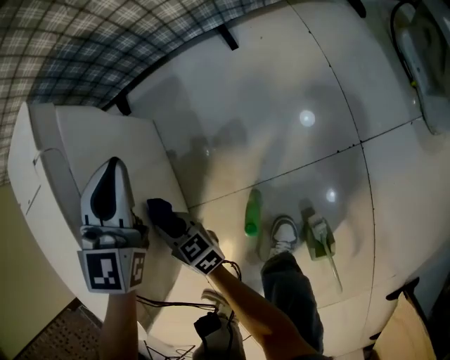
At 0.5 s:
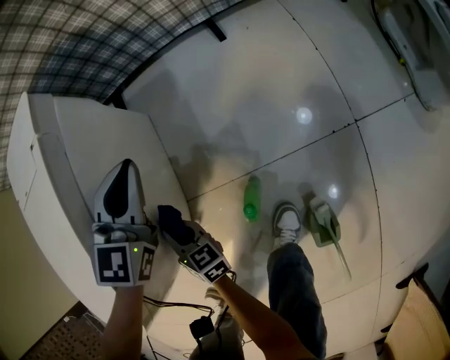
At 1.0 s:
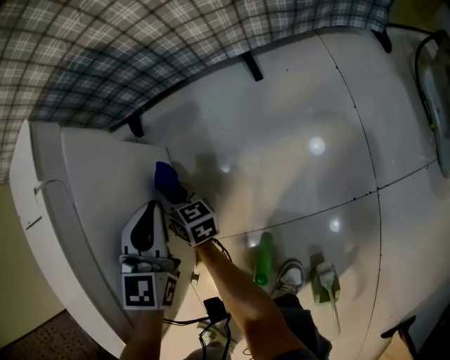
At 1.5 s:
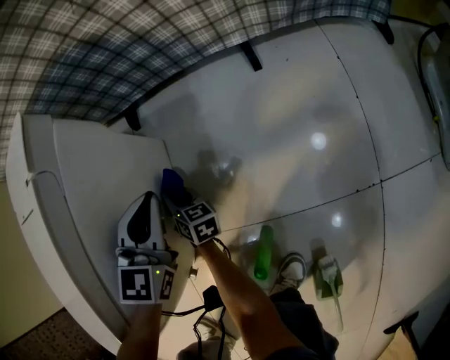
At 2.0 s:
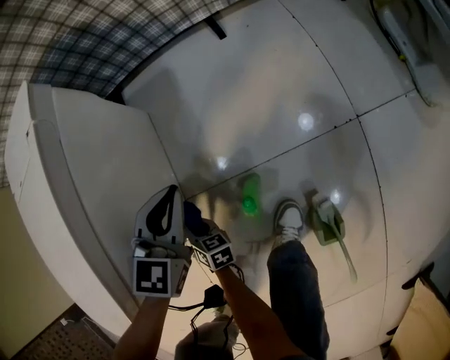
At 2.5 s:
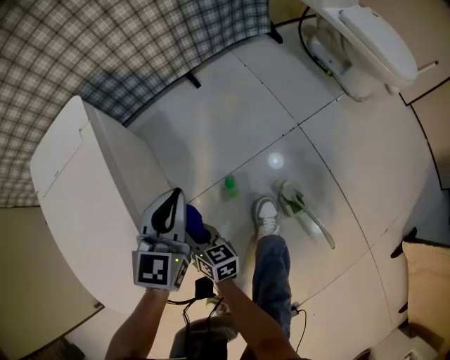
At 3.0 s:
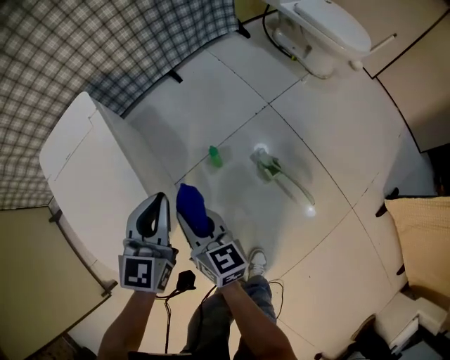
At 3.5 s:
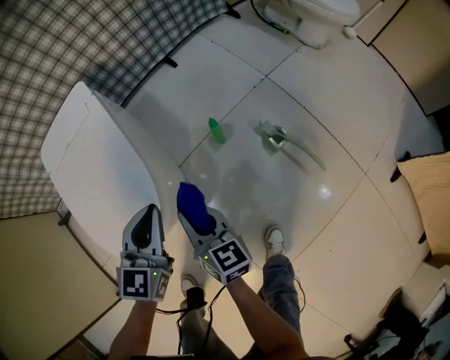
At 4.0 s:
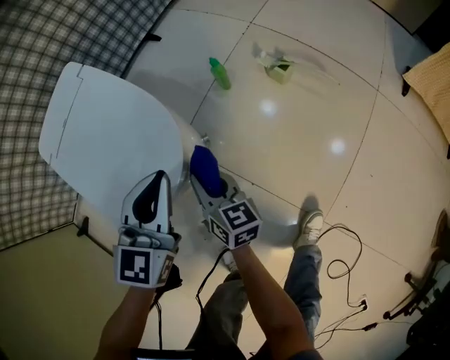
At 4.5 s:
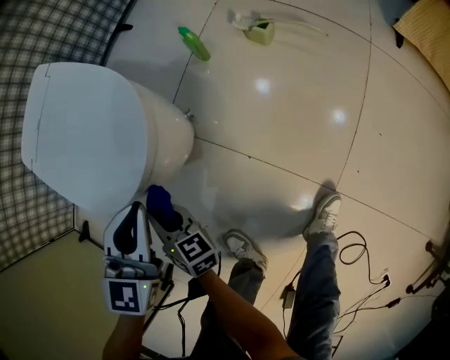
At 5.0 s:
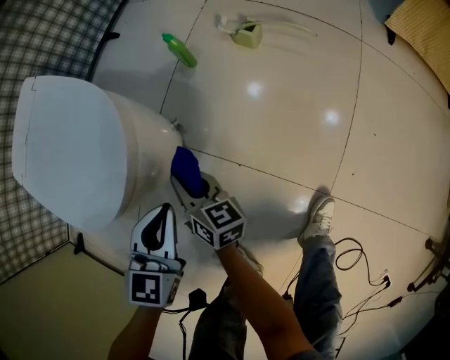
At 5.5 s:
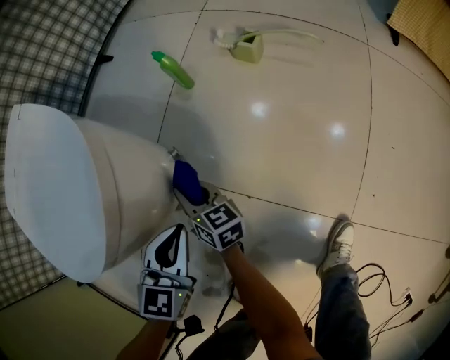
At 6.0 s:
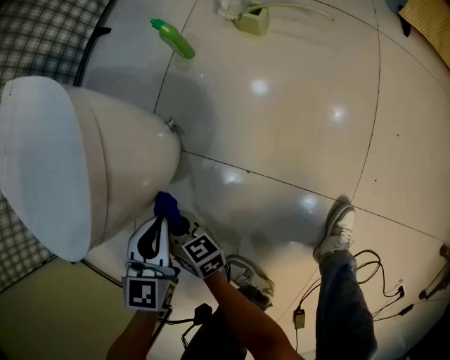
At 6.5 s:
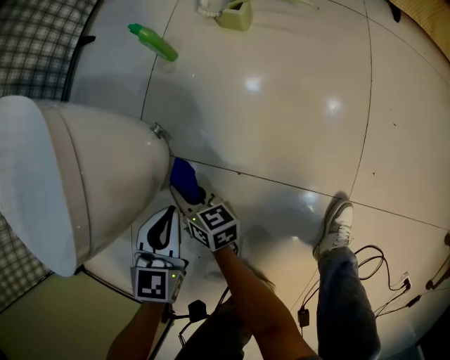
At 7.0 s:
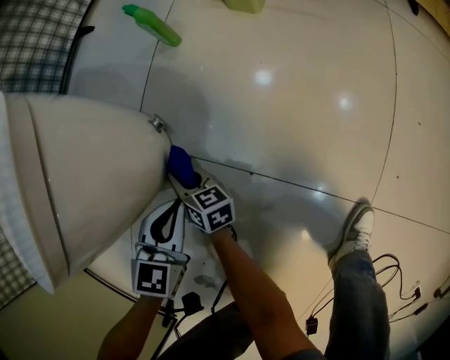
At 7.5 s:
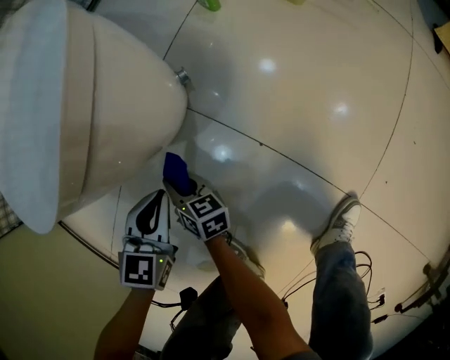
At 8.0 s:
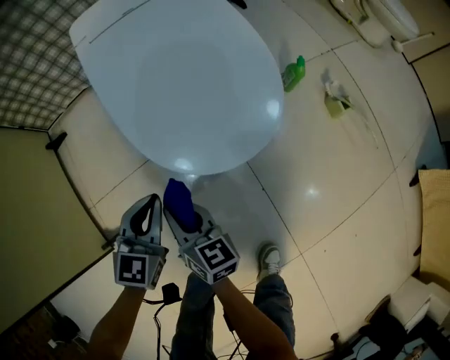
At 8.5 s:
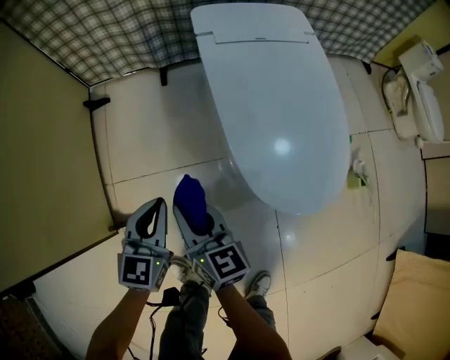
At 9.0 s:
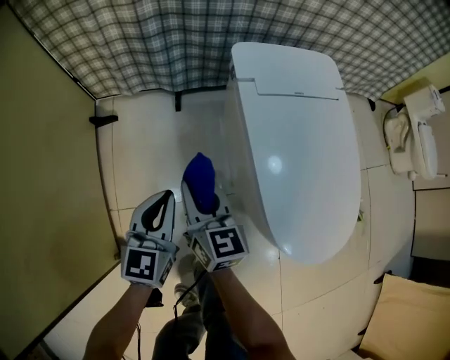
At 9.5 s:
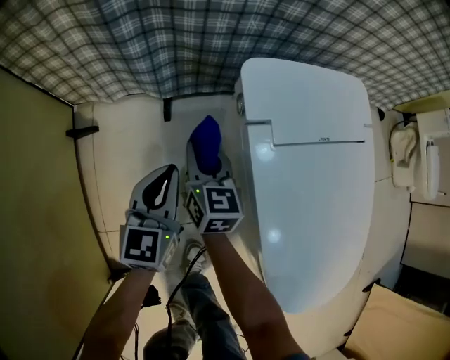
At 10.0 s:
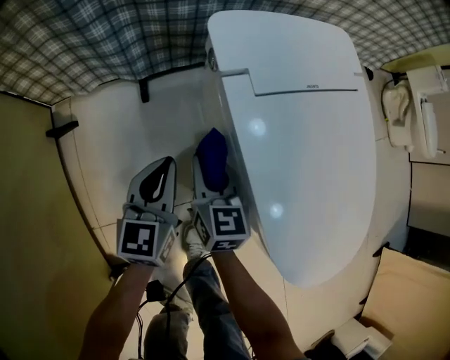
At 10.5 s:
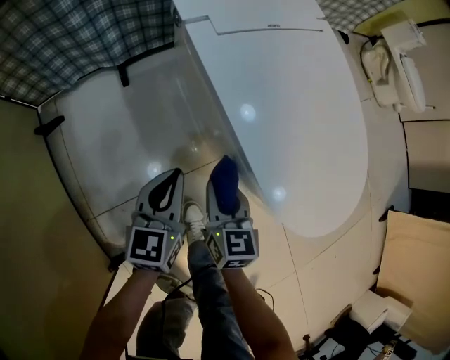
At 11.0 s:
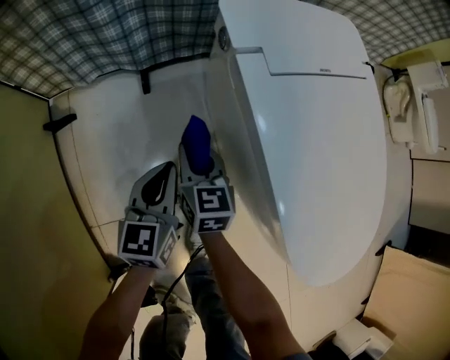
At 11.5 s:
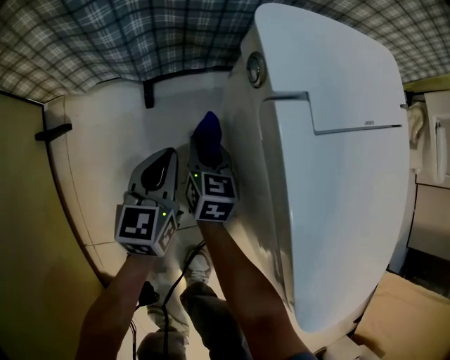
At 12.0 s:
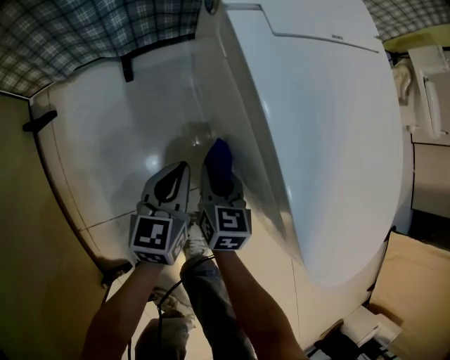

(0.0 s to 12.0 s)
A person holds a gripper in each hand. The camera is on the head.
0.0 s - 2.0 s: The left gripper moves forward and backward over roughly 15 cm, changing direction 2 times. The right gripper goes forward and backward, roughly 30 cm each way, reversing 2 times, and changes its angle by about 20 degrees.
2.0 s - 4.0 s: The right gripper moves upward, approximately 30 cm, and turns by approximately 60 degrees; the left gripper ends up roughly 50 cm from where it was, and swivels some 40 degrees.
4.0 s - 6.0 s: The left gripper goes approximately 30 cm downward. The right gripper goes approximately 25 cm downward, to the left and backward.
6.0 s - 8.0 s: The grippers both shift upward by about 20 cm. The right gripper swivels some 30 degrees. The left gripper rotates roughly 30 degrees.
8.0 s - 10.0 s: The pair of grippers is taken forward and to the left, roughly 40 cm. The left gripper rotates about 20 degrees, while the right gripper rotates roughly 20 degrees.
10.0 s - 12.0 s: The left gripper goes forward and backward, roughly 20 cm each way, reversing 2 times. The right gripper moves forward and backward over about 25 cm, changing direction 2 times.

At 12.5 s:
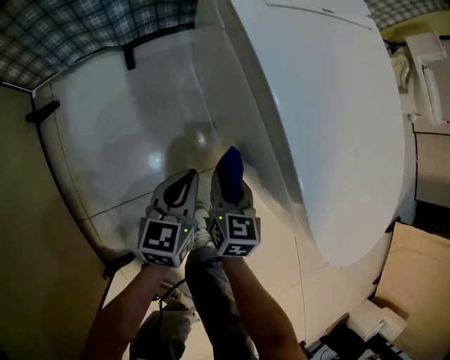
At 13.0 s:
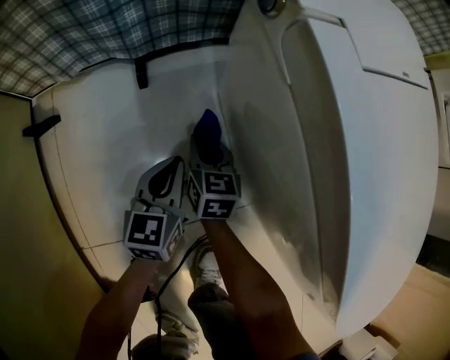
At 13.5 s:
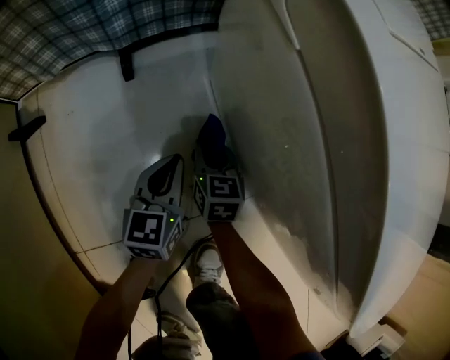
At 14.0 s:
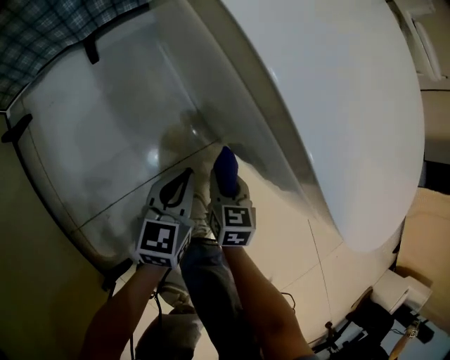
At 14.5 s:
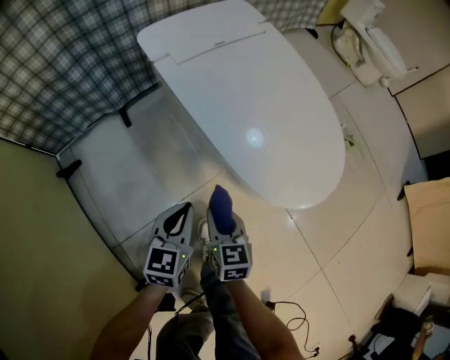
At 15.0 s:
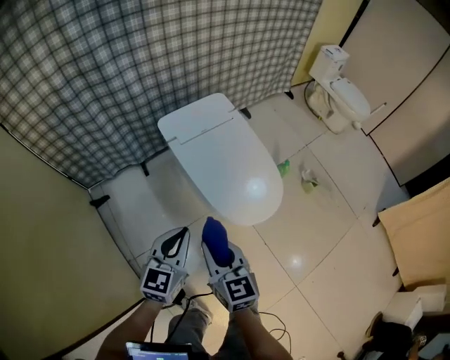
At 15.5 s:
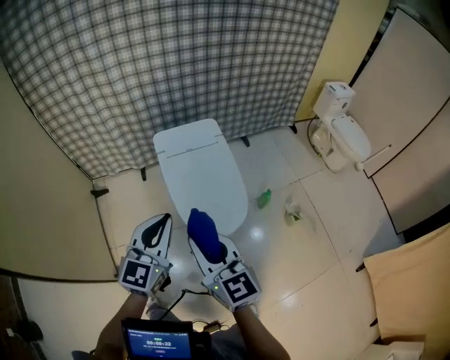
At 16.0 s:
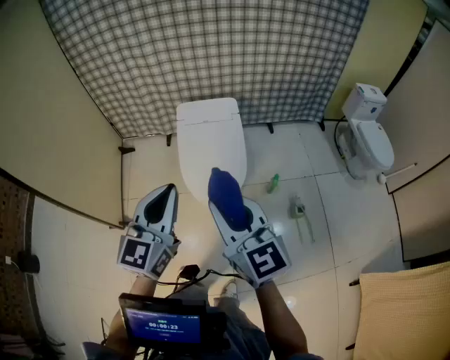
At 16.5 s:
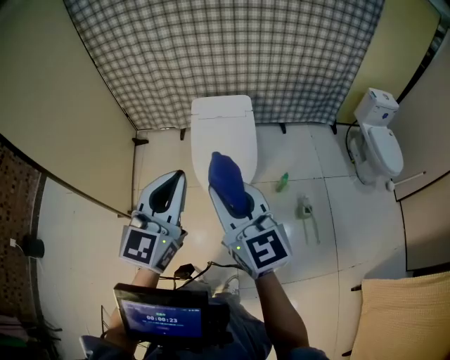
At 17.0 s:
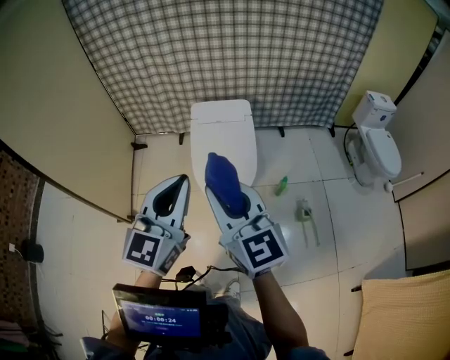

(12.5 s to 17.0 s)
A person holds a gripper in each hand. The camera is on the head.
12.5 s - 14.5 s: The two grippers go about 15 cm upward and backward. The left gripper rotates roughly 20 degrees.
14.5 s - 17.0 s: The two grippers go about 70 cm upward. The right gripper points its fingers some 30 degrees further upward. The left gripper rotates some 40 degrees.

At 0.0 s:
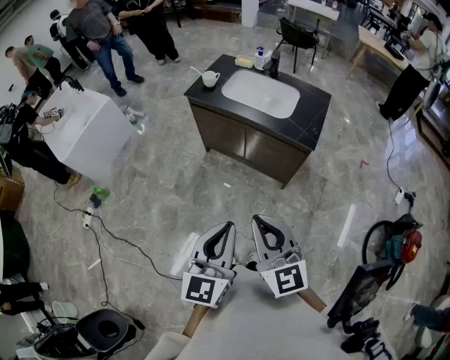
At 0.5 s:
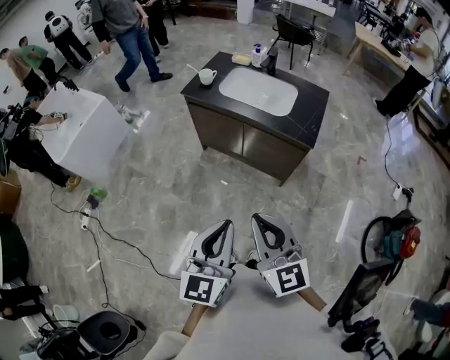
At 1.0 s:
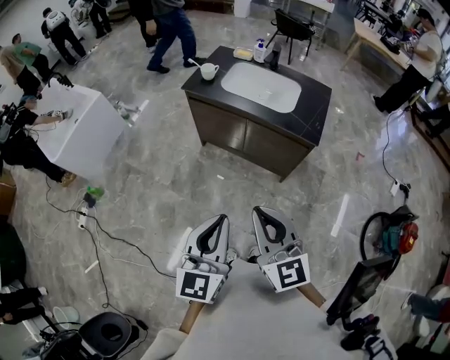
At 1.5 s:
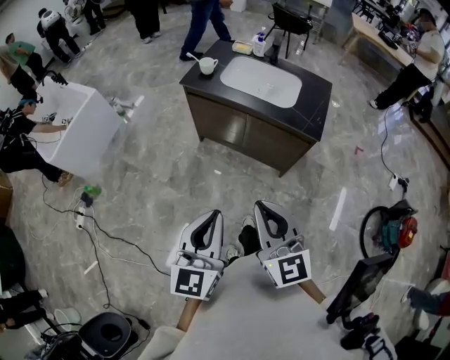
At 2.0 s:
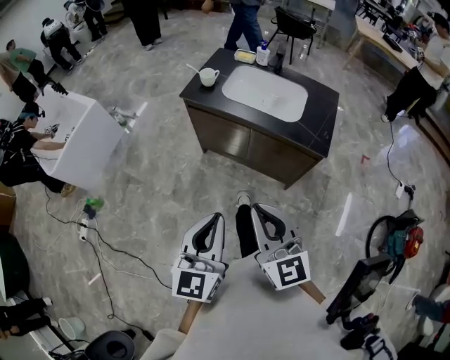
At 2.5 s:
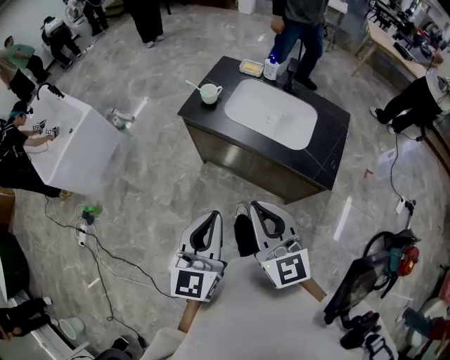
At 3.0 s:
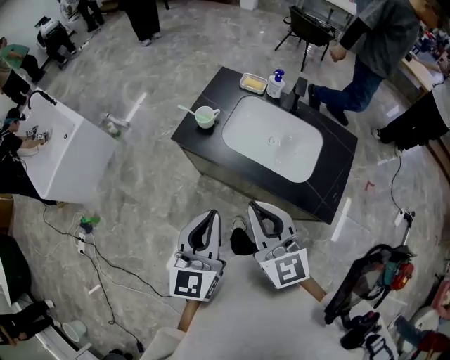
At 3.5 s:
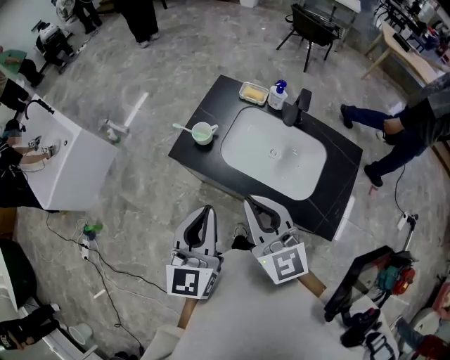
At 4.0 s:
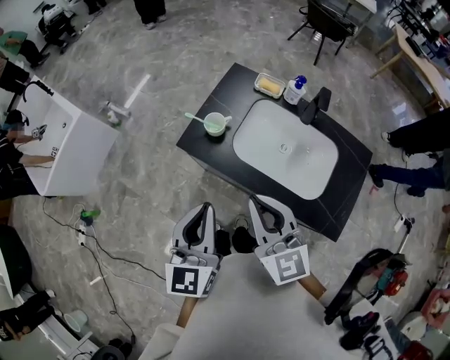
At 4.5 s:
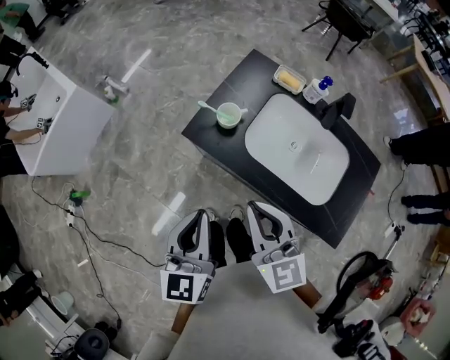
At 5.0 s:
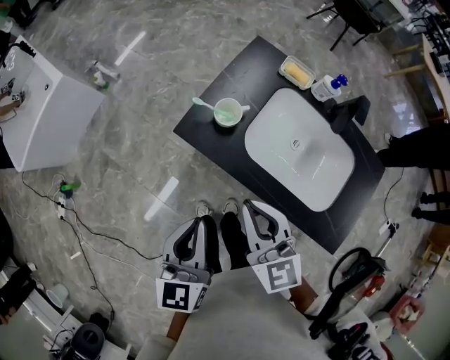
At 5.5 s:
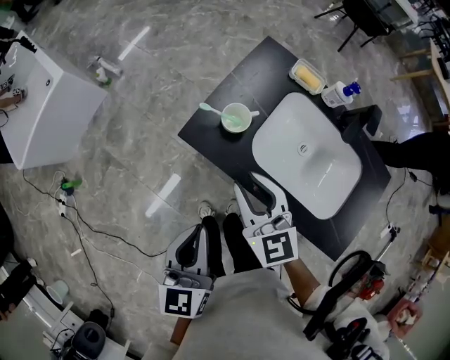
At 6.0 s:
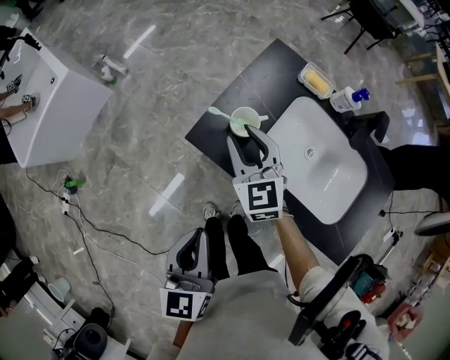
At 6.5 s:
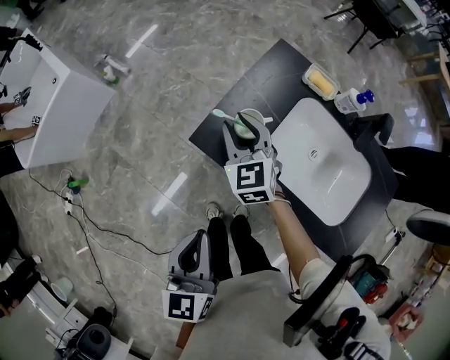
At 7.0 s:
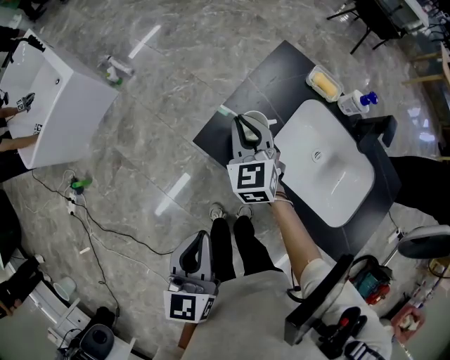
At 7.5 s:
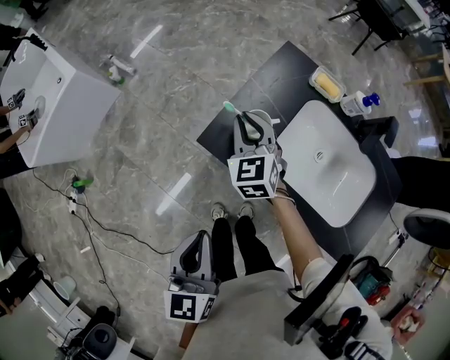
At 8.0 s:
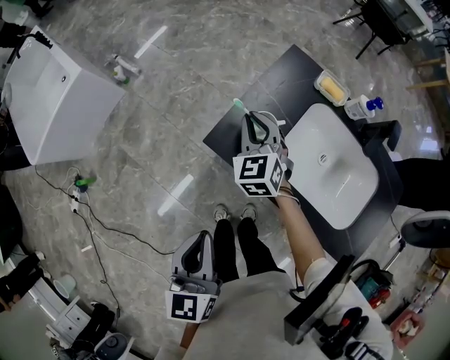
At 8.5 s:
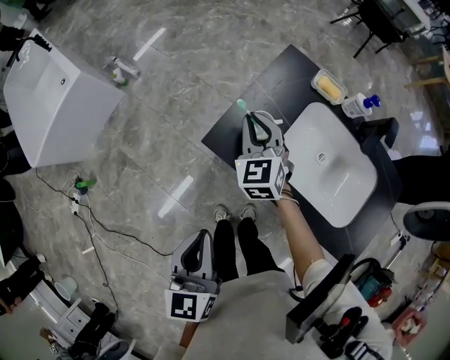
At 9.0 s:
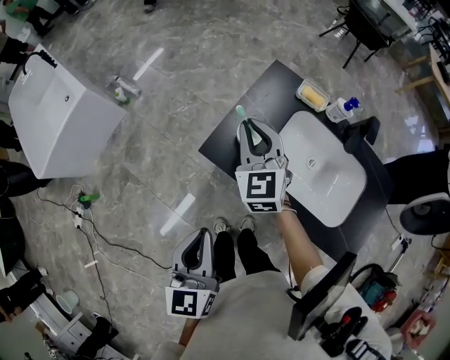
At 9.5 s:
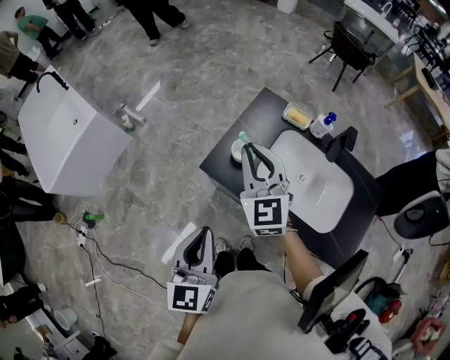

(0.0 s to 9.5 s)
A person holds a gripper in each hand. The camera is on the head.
0.0 s - 2.0 s: Both grippers travel together forward and to the left, about 15 cm.
2.0 s - 4.0 s: The grippers both shift forward by approximately 35 cm.
4.0 s - 5.5 s: The left gripper goes approximately 10 cm downward and to the left; the right gripper heads downward, forward and to the left, covering about 20 cm, and opens up.
5.5 s - 7.5 s: The right gripper shifts some 20 cm forward and downward, and changes its angle by about 20 degrees.
7.5 s - 9.5 s: The right gripper heads upward, covering roughly 20 cm, and turns by approximately 20 degrees. The left gripper heads upward, covering some 5 cm.
